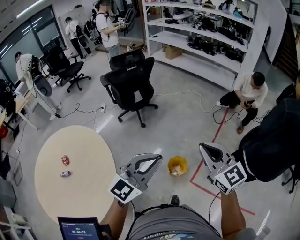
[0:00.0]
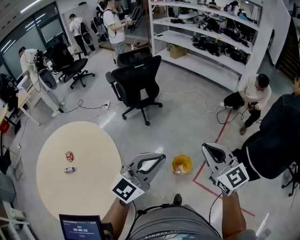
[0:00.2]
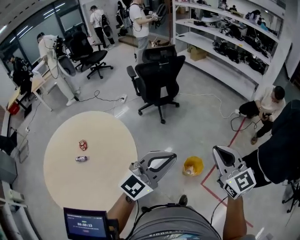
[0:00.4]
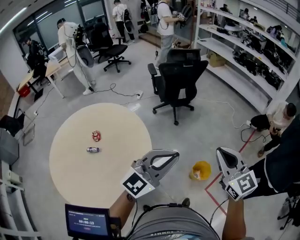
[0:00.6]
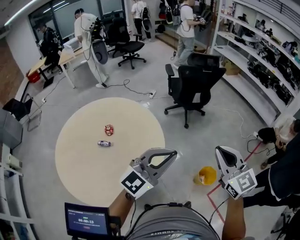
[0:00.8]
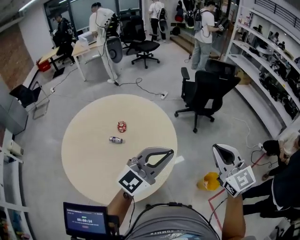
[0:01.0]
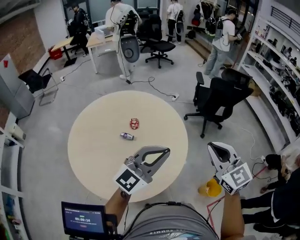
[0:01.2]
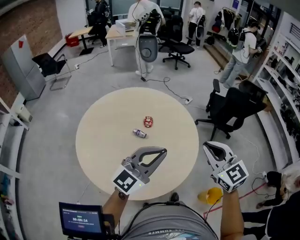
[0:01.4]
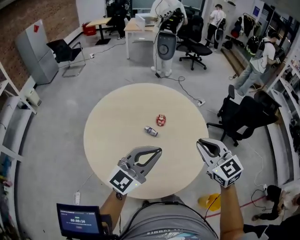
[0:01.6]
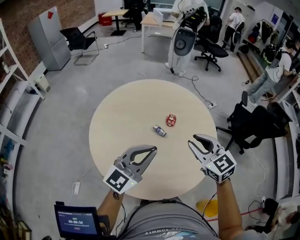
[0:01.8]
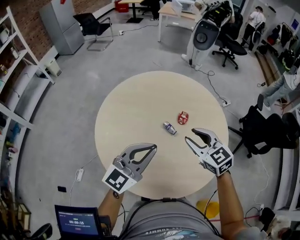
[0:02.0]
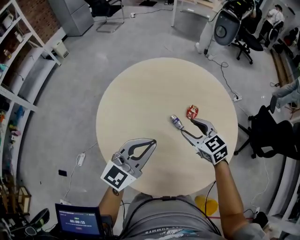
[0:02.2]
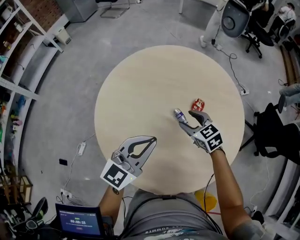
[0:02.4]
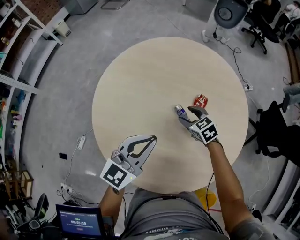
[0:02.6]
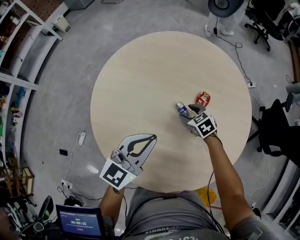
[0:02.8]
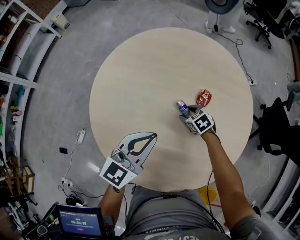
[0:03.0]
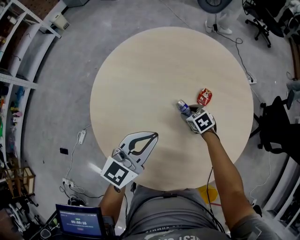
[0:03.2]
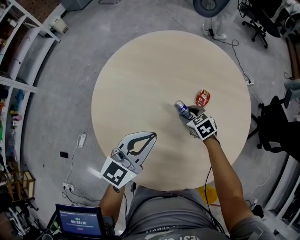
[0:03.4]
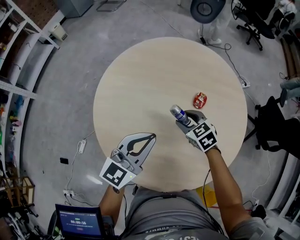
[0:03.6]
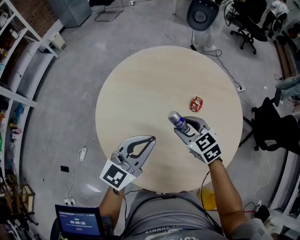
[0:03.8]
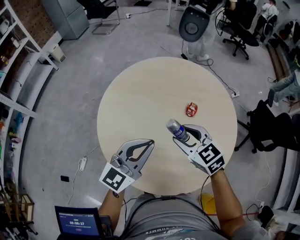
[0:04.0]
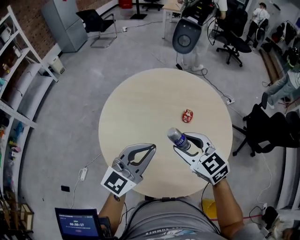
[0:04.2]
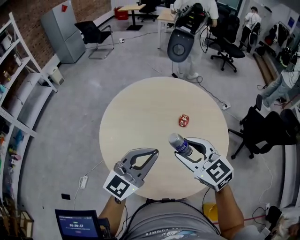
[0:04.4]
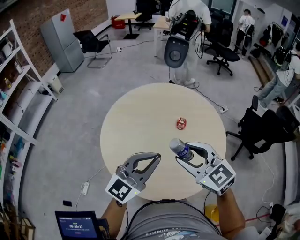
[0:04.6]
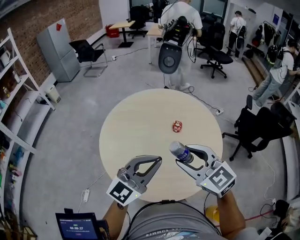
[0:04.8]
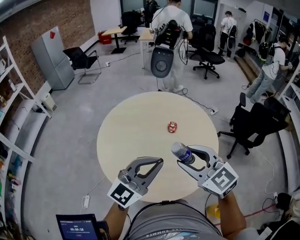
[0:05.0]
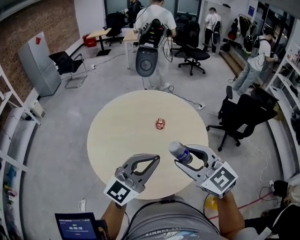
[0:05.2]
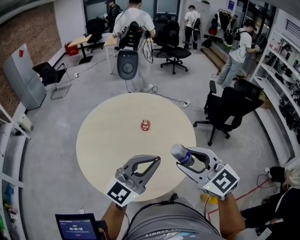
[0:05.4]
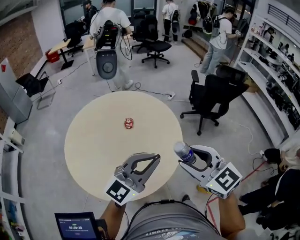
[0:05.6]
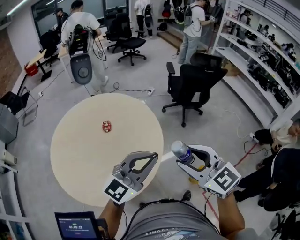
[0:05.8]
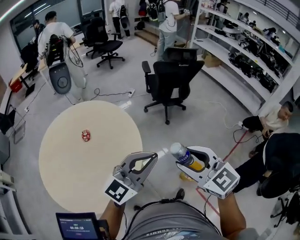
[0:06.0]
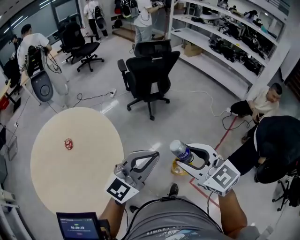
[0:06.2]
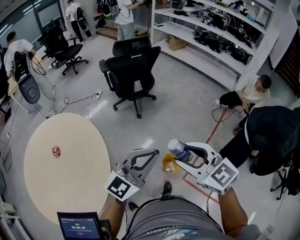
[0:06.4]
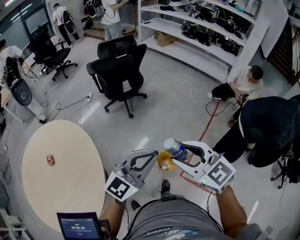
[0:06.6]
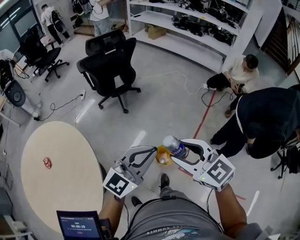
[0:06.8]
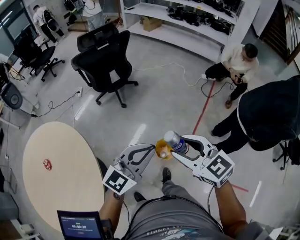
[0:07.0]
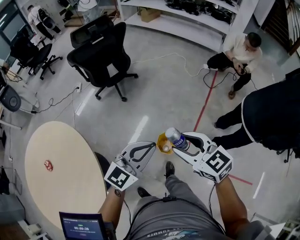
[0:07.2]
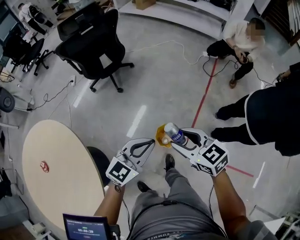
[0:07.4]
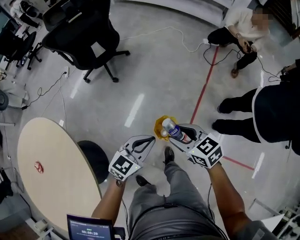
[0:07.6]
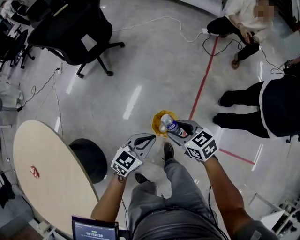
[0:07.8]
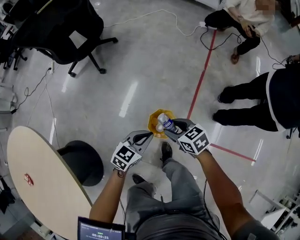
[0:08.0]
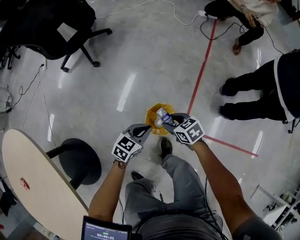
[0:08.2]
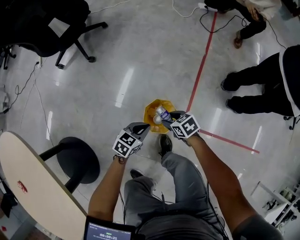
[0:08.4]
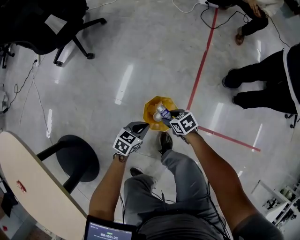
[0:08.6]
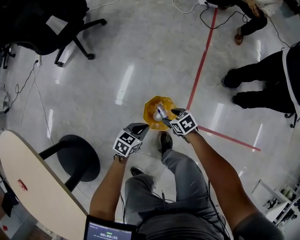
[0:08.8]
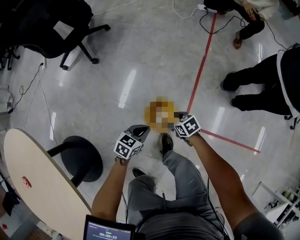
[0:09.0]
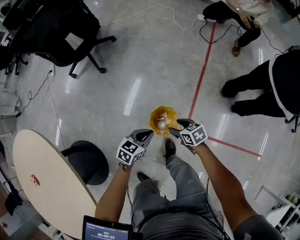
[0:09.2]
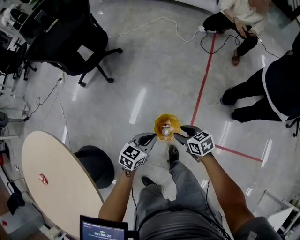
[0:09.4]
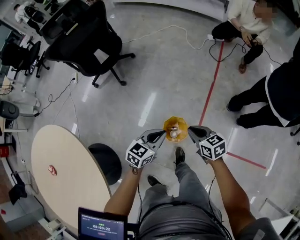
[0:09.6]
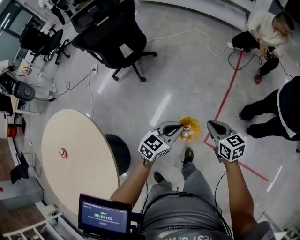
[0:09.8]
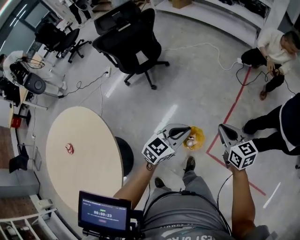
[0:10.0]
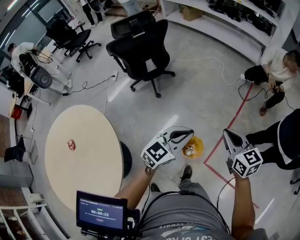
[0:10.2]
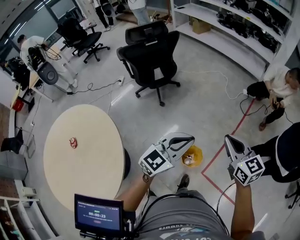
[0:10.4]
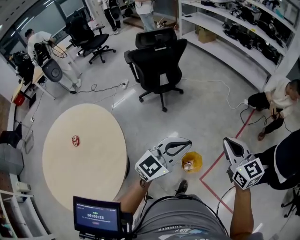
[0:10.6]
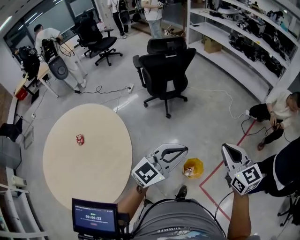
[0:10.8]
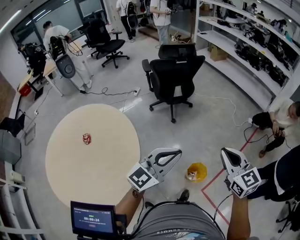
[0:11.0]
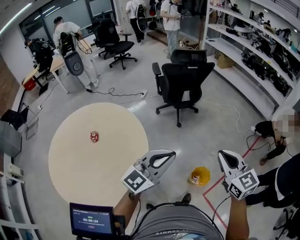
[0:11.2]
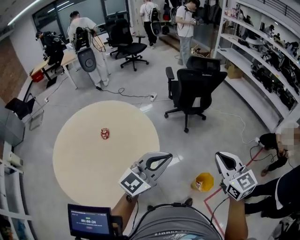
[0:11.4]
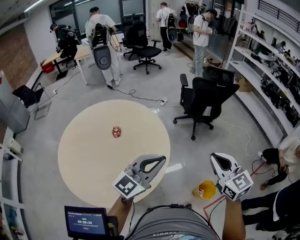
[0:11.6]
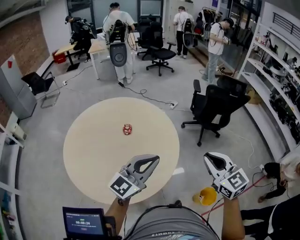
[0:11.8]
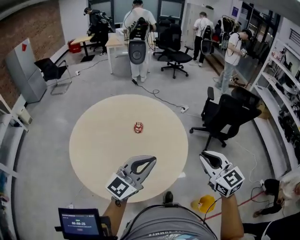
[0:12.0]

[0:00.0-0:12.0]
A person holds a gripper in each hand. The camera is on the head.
0.0 to 1.6 s: The pair of grippers is taken some 60 cm. The left gripper turns by some 50 degrees; the right gripper changes its angle by approximately 60 degrees.
1.6 to 3.0 s: The right gripper is displaced downward by approximately 40 cm, points its fingers about 40 degrees further downward, and opens; the left gripper shifts by about 30 cm, and turns by approximately 40 degrees.
3.0 to 4.4 s: The left gripper is displaced upward and backward by approximately 25 cm, and turns by roughly 20 degrees. The right gripper moves upward and backward, roughly 50 cm, and tips its fingers upward by some 40 degrees.
4.4 to 6.0 s: The two grippers travel together, some 50 cm. The left gripper swivels approximately 50 degrees. Meanwhile the right gripper changes its angle by about 50 degrees.
6.0 to 7.6 s: The left gripper travels downward by approximately 40 cm, and angles its fingers downward, by about 30 degrees. Meanwhile the right gripper moves roughly 50 cm, and rotates about 50 degrees.
7.6 to 9.0 s: Both grippers travel together downward, approximately 40 cm. The right gripper rotates some 30 degrees. The left gripper changes its angle by roughly 30 degrees.
9.0 to 10.4 s: Both grippers move upward, some 70 cm. The right gripper angles its fingers upward, by approximately 40 degrees, and closes its fingers. The left gripper tips its fingers upward by some 30 degrees.
10.4 to 12.0 s: Both grippers are carried approximately 60 cm. The left gripper swivels approximately 60 degrees, while the right gripper changes its angle by roughly 50 degrees.

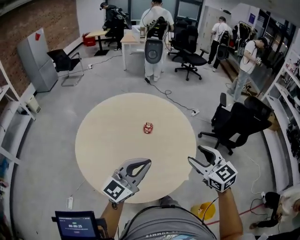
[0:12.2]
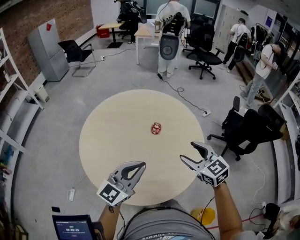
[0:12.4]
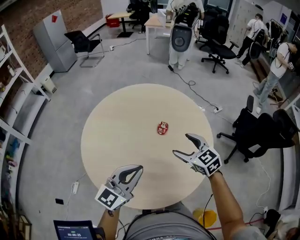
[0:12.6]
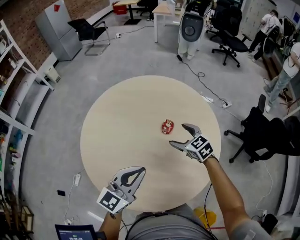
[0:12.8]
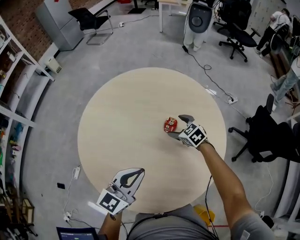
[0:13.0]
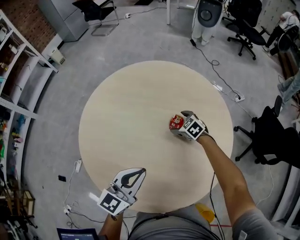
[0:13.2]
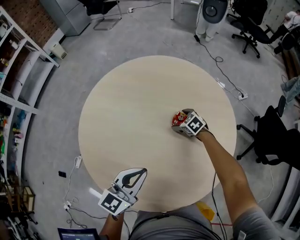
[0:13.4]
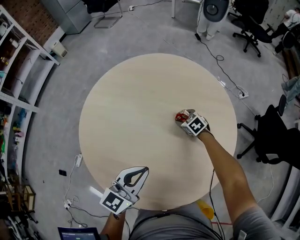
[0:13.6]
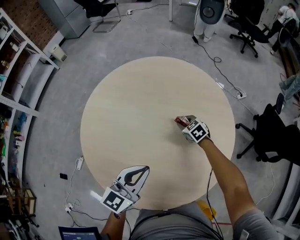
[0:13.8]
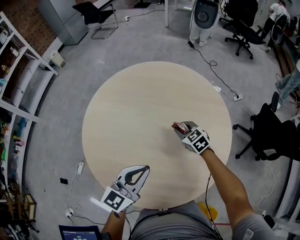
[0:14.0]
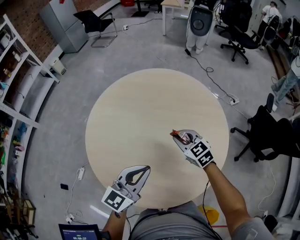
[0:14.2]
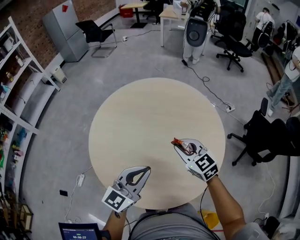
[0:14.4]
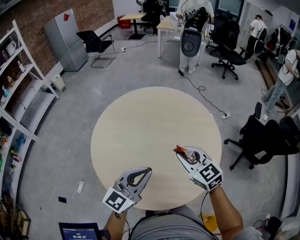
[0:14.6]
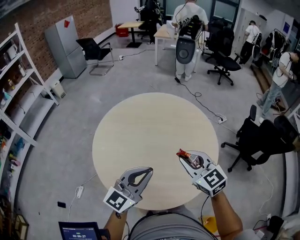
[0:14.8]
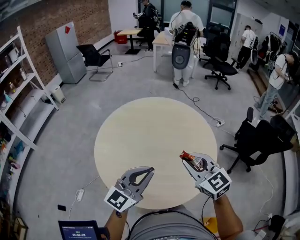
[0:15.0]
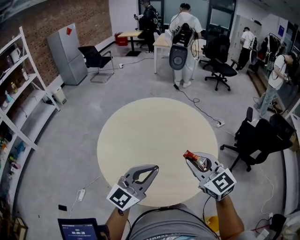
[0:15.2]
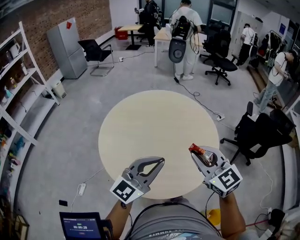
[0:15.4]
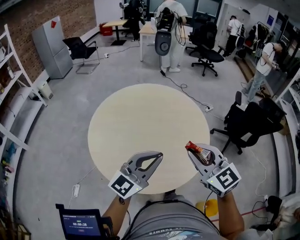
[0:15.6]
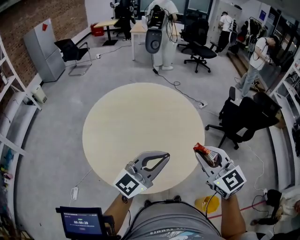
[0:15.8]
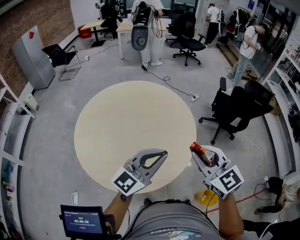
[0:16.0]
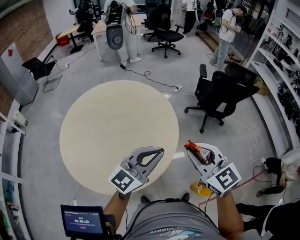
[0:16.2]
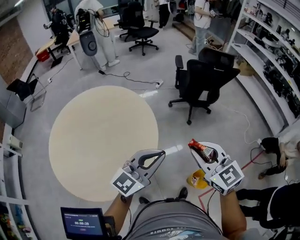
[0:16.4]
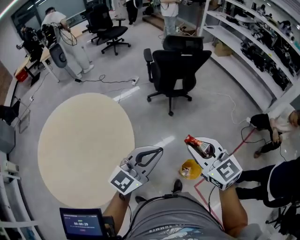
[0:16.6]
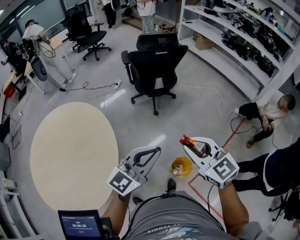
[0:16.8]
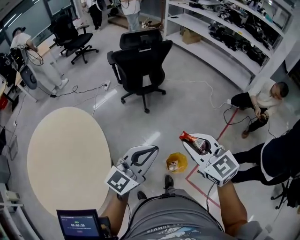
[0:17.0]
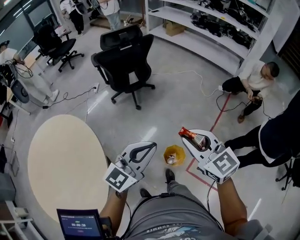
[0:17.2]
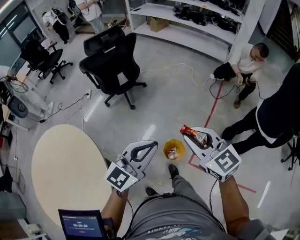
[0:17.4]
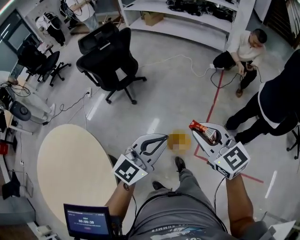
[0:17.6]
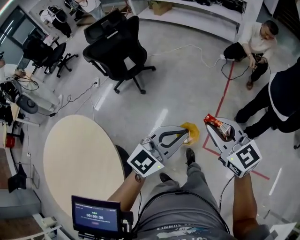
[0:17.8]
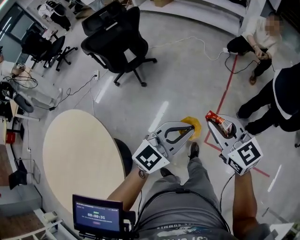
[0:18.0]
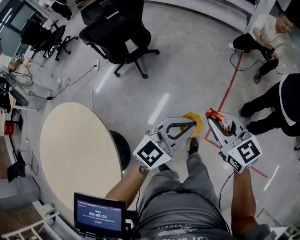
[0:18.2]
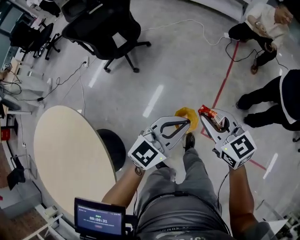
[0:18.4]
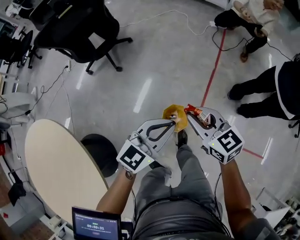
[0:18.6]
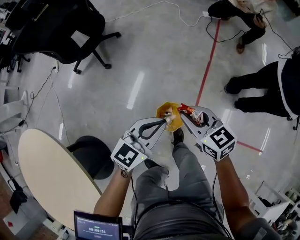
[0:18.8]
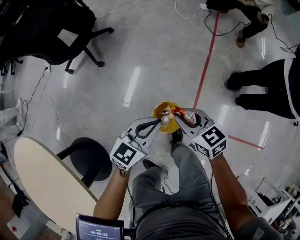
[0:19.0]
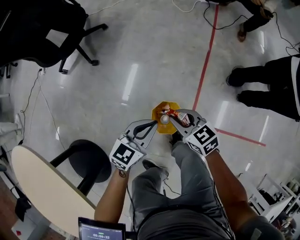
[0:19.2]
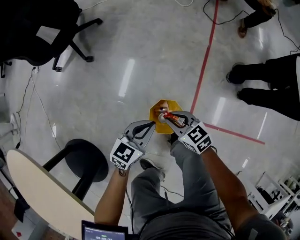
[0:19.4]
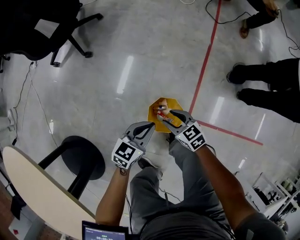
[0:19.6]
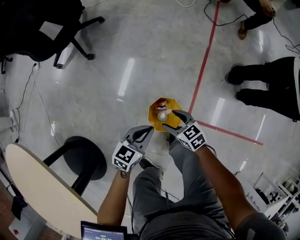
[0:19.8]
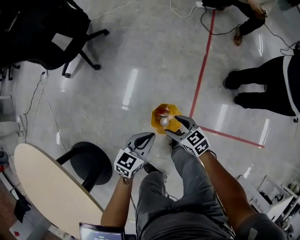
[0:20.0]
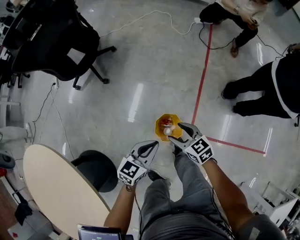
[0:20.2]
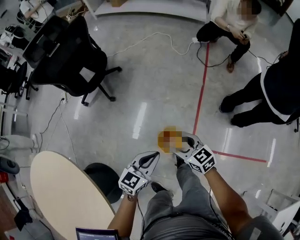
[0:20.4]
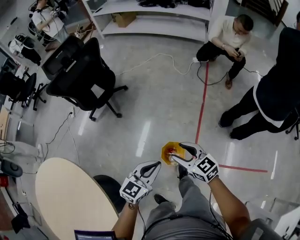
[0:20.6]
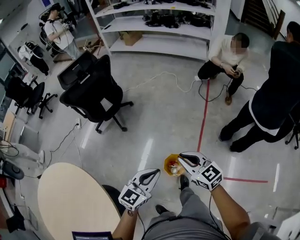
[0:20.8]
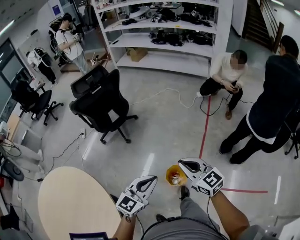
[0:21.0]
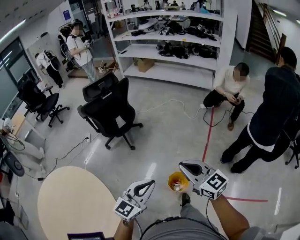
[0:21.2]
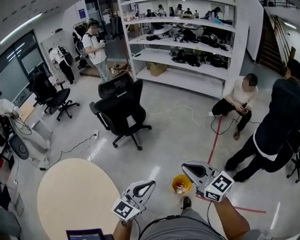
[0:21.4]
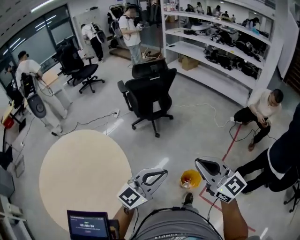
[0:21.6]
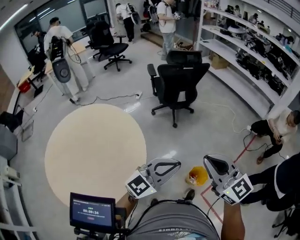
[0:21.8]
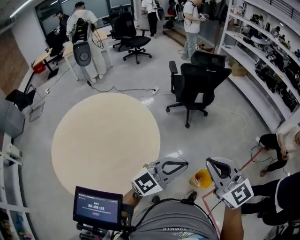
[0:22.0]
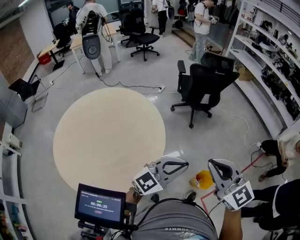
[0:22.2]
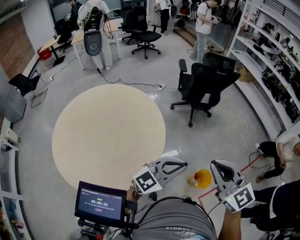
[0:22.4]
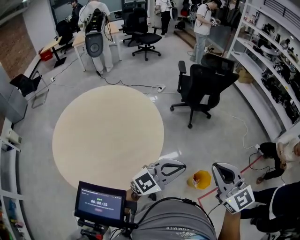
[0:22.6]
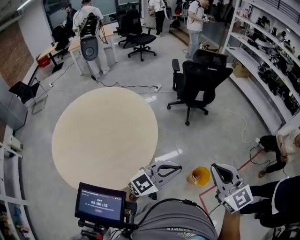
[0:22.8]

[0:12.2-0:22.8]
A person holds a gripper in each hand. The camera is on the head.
12.2 to 13.8 s: The right gripper changes place by some 60 cm, angles its fingers downward, by some 30 degrees, and closes. The left gripper moves about 30 cm, and turns by about 30 degrees.
13.8 to 15.2 s: The left gripper goes roughly 30 cm backward and upward, and changes its angle by roughly 30 degrees, while the right gripper moves upward and backward, some 60 cm, and angles its fingers upward, by approximately 40 degrees.
15.2 to 16.8 s: Both grippers are carried some 60 cm. The left gripper rotates roughly 50 degrees, while the right gripper rotates about 50 degrees.
16.8 to 18.2 s: The left gripper shifts by approximately 20 cm, and swivels about 40 degrees; the right gripper shifts by about 20 cm, and turns by some 30 degrees.
18.2 to 19.8 s: The grippers both shift downward by approximately 60 cm. The right gripper turns by approximately 30 degrees, and opens up. The left gripper rotates roughly 40 degrees.
19.8 to 21.2 s: The grippers both shift upward by approximately 70 cm. The left gripper changes its angle by approximately 40 degrees, while the right gripper angles its fingers upward, by about 40 degrees, and closes.
21.2 to 22.8 s: The right gripper shifts by about 30 cm, and rotates about 30 degrees; the left gripper moves approximately 25 cm.

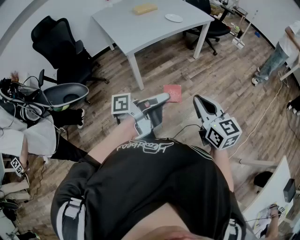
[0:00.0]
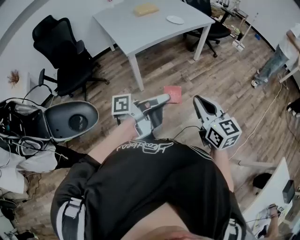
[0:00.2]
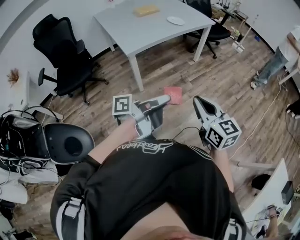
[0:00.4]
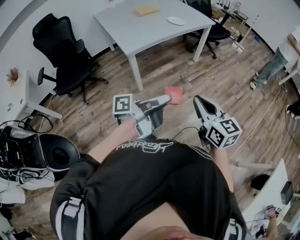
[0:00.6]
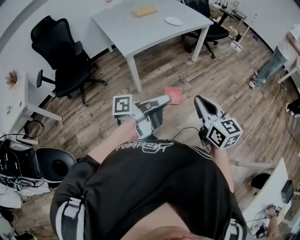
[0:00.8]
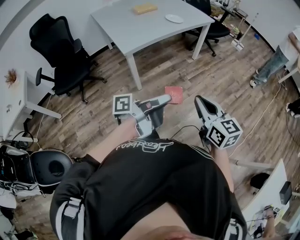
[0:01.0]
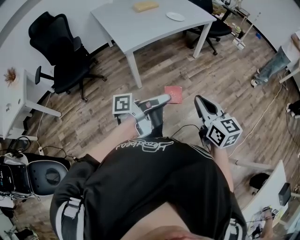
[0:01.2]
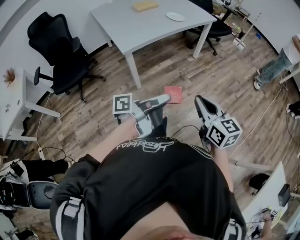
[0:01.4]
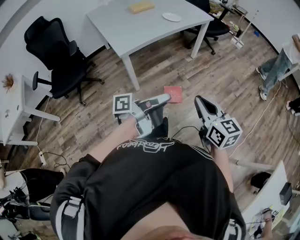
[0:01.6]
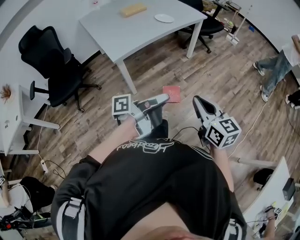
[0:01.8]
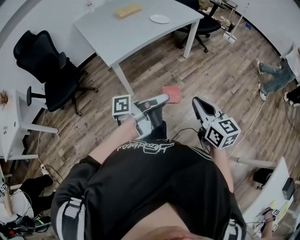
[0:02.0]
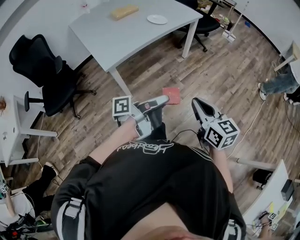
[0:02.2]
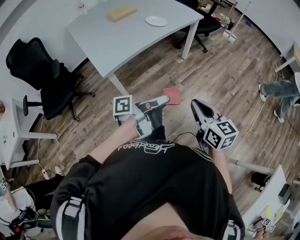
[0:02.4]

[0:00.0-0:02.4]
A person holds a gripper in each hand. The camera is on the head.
1.2 to 2.4 s: The right gripper moves approximately 15 cm.
